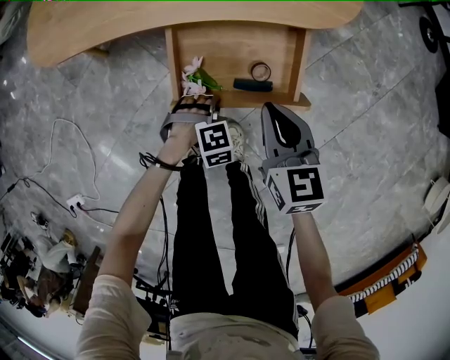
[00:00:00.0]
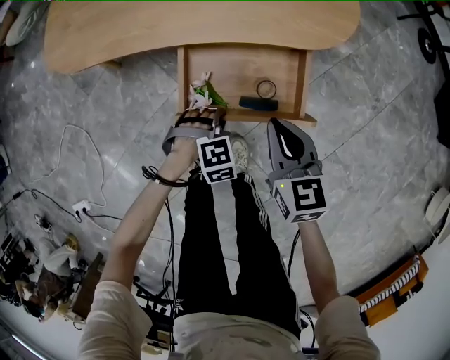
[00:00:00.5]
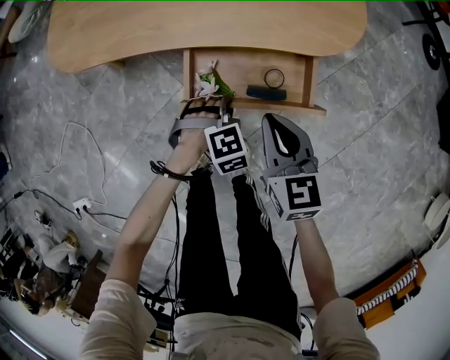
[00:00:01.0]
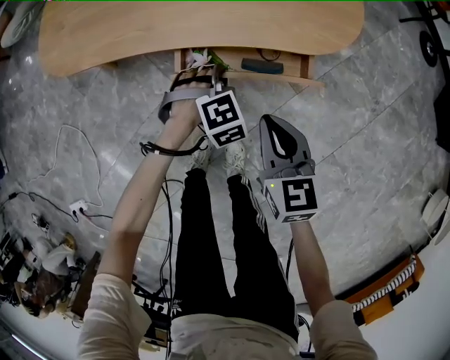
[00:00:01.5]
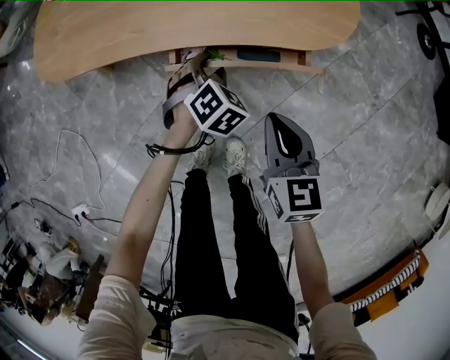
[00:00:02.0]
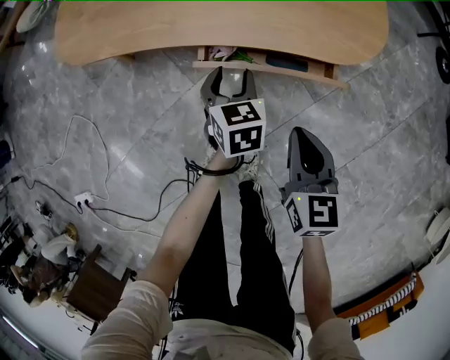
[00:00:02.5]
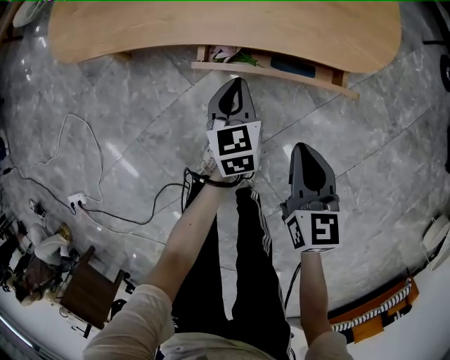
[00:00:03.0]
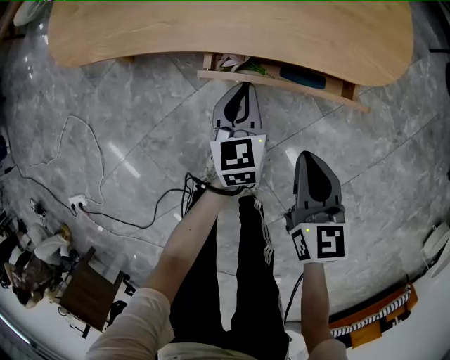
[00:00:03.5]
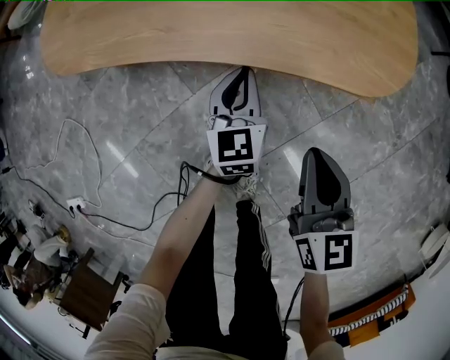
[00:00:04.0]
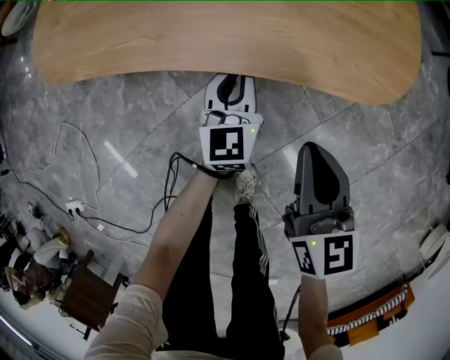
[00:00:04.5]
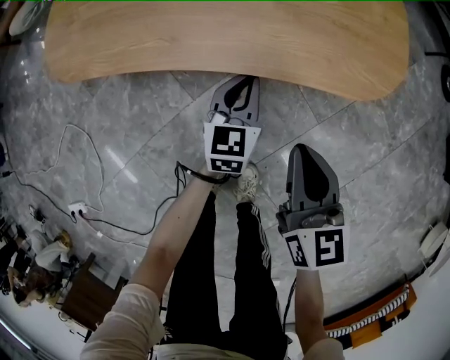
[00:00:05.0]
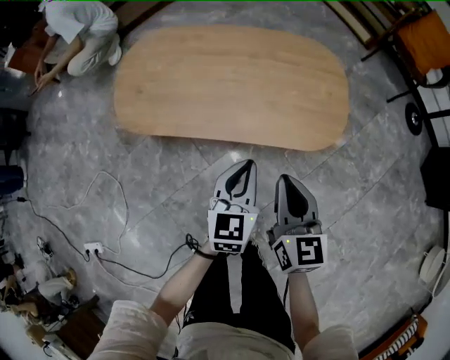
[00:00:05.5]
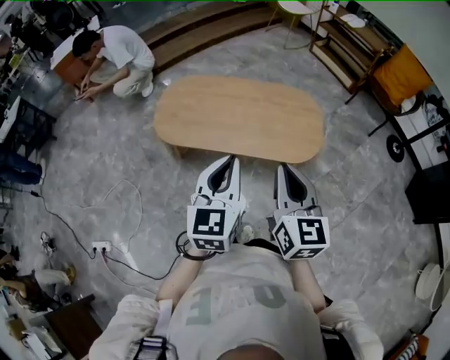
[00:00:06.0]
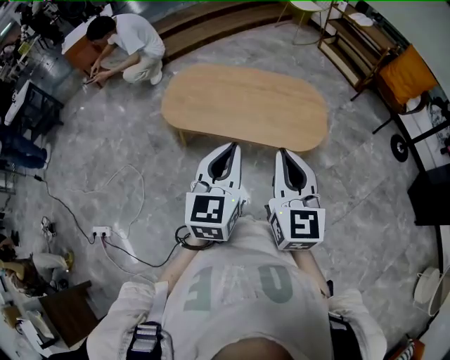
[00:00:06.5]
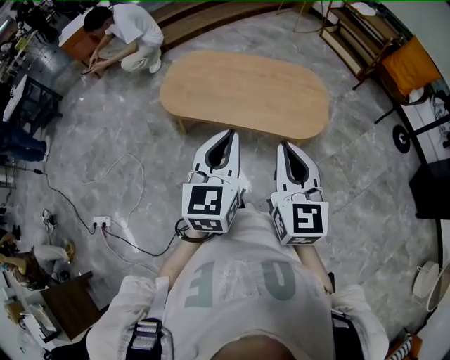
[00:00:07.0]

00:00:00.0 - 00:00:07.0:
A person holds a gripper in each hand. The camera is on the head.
00:00:00.0 - 00:00:02.0: The left gripper shifts by about 20 cm, turns by roughly 40 degrees, and opens up.
00:00:02.0 - 00:00:03.5: The left gripper twists some 50 degrees counterclockwise, seen from behind, and closes up.
00:00:03.5 - 00:00:05.0: Both grippers move forward, about 5 cm.
00:00:05.0 - 00:00:07.0: The two grippers go about 50 cm upward. The left gripper changes its angle by about 20 degrees. Meanwhile the right gripper changes its angle by roughly 30 degrees.

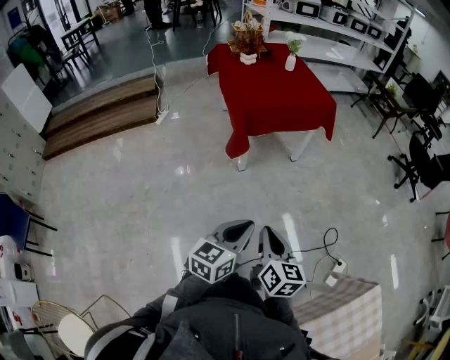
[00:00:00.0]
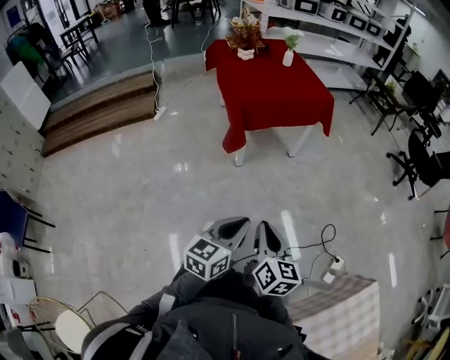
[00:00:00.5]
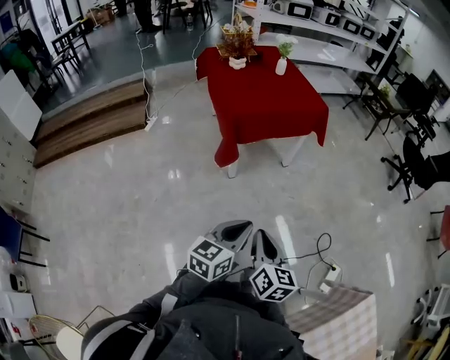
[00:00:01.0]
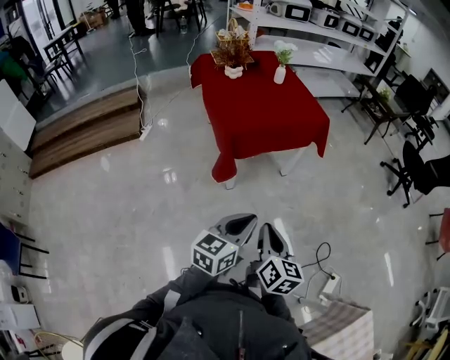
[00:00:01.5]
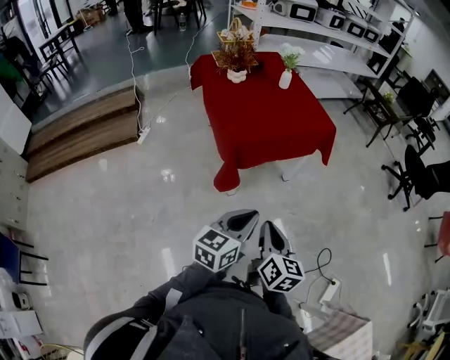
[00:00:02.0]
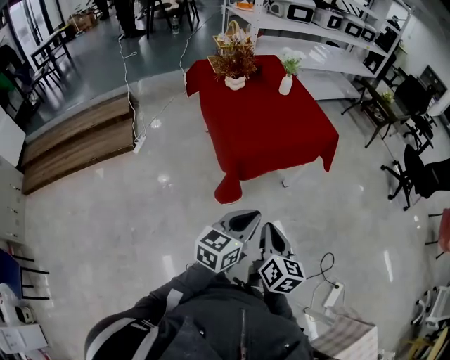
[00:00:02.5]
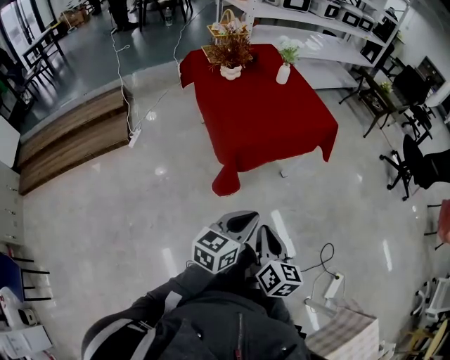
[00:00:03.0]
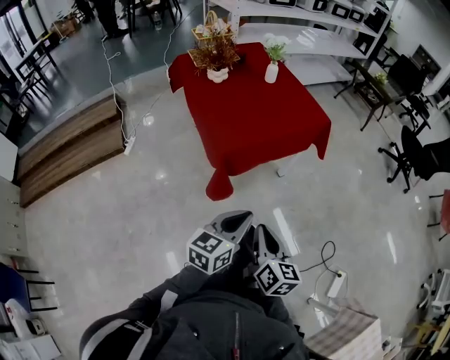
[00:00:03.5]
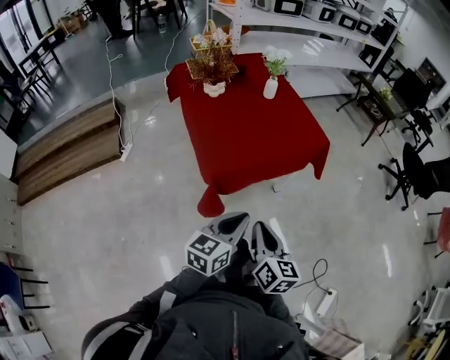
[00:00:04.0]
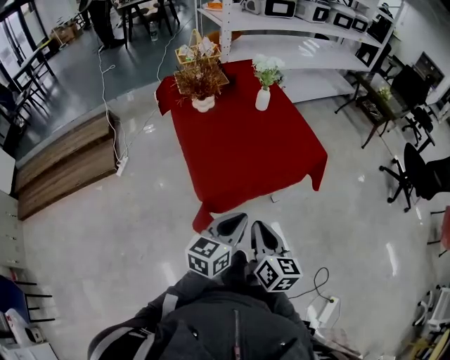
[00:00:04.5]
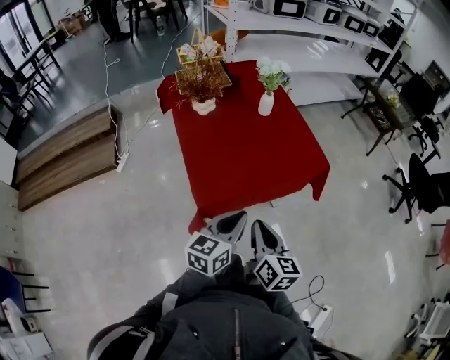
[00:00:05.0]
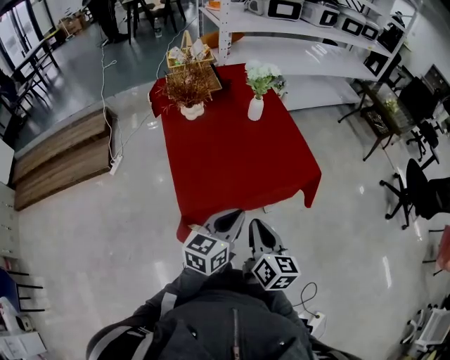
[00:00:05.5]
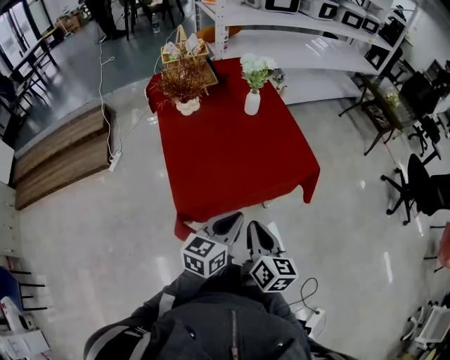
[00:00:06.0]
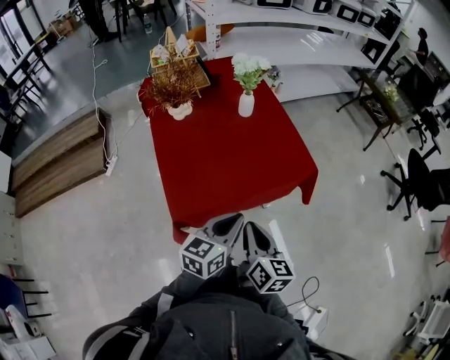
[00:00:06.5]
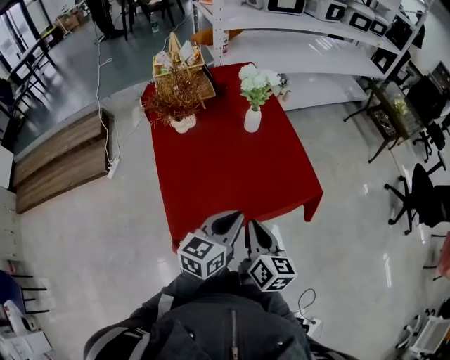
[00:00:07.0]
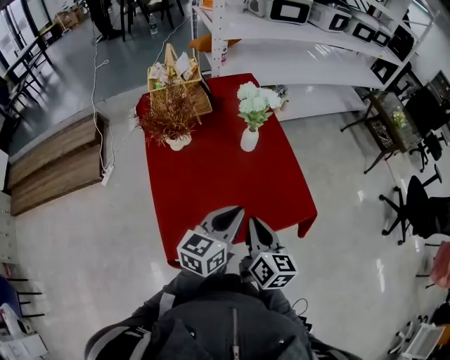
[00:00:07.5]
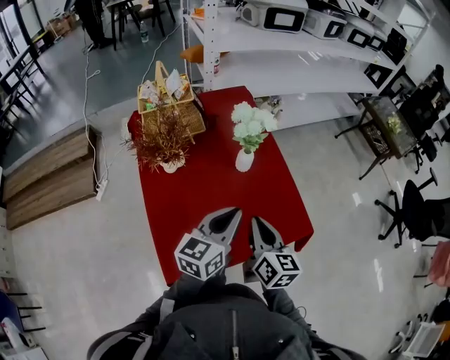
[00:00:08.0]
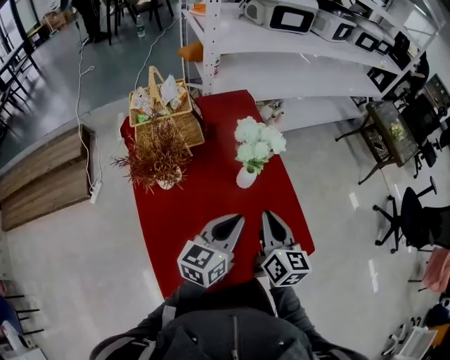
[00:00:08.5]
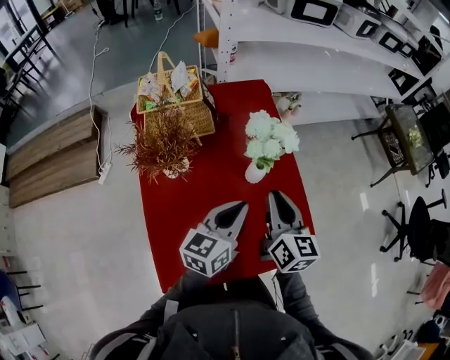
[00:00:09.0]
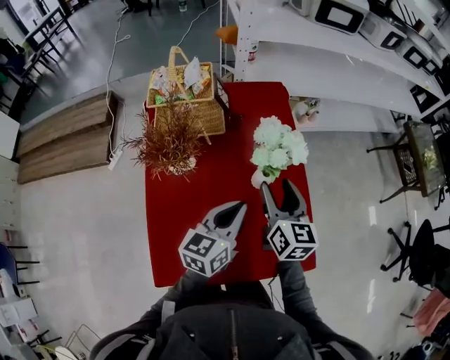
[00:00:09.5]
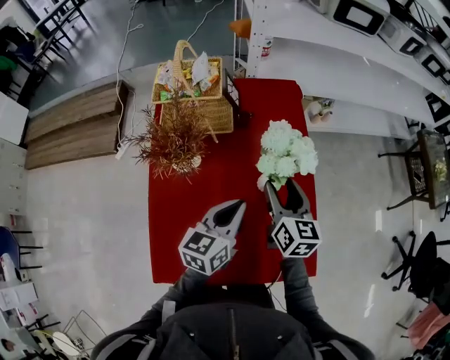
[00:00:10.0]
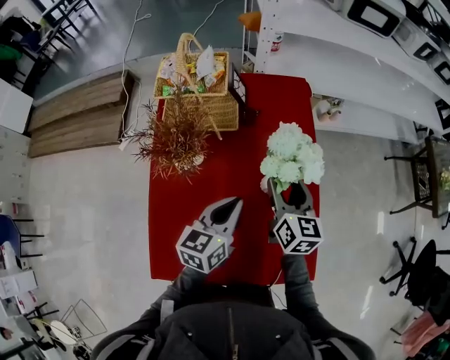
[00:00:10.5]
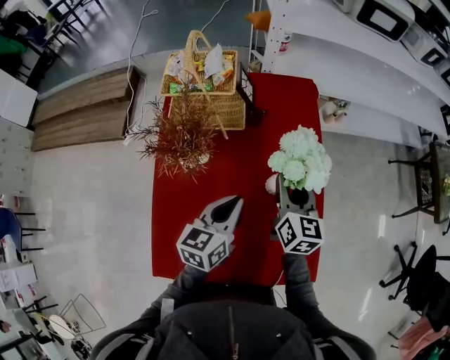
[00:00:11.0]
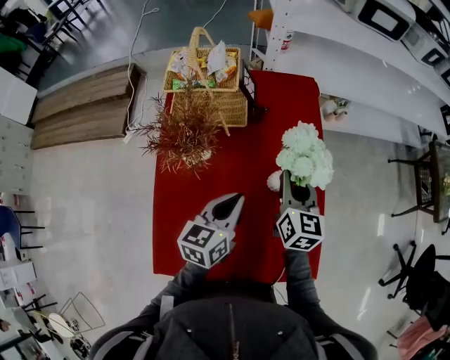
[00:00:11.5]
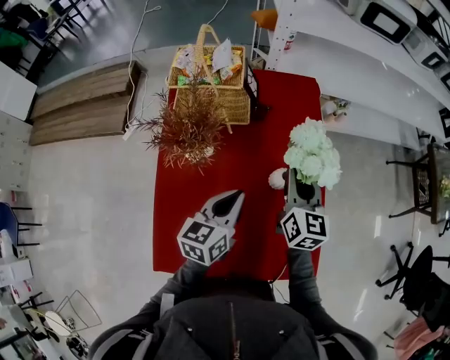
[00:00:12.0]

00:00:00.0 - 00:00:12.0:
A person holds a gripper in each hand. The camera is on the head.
00:00:00.0 - 00:00:02.0: The grippers both shift forward by roughly 25 cm.
00:00:02.0 - 00:00:04.0: The grippers both shift forward by some 15 cm.
00:00:04.0 - 00:00:06.0: The grippers both shift forward by about 20 cm.
00:00:06.0 - 00:00:08.0: Both grippers travel together forward, roughly 25 cm.
00:00:08.0 - 00:00:10.0: The left gripper shifts approximately 15 cm forward. The right gripper goes about 25 cm forward, and opens up.
00:00:10.0 - 00:00:12.0: The right gripper closes up.

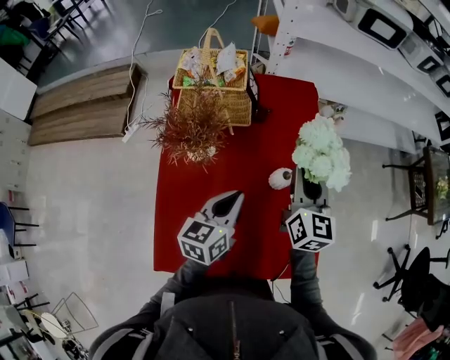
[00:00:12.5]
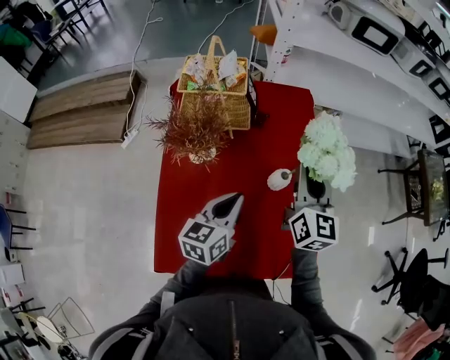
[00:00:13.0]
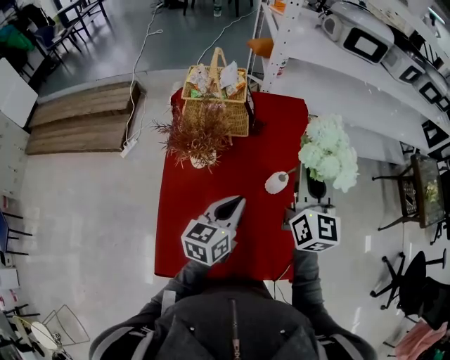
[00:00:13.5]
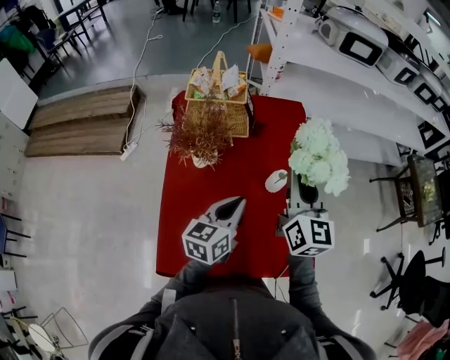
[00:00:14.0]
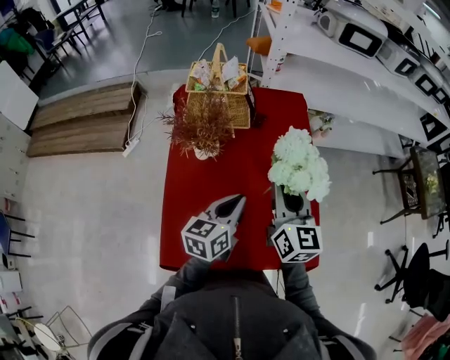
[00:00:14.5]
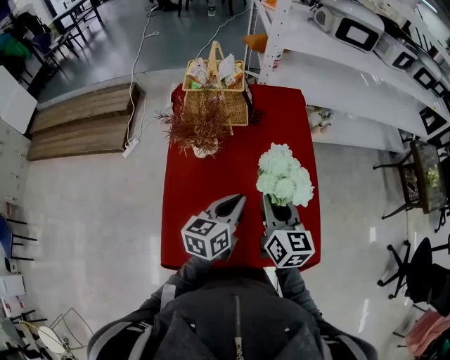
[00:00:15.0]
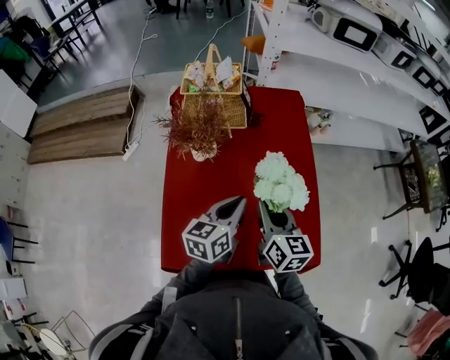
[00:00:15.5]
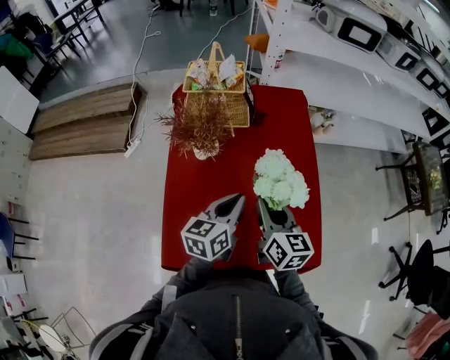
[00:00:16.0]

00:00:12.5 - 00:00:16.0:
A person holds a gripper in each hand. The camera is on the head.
00:00:12.5 - 00:00:14.5: The left gripper shifts about 5 cm backward. Meanwhile the right gripper shifts about 10 cm backward.
00:00:14.5 - 00:00:16.0: The right gripper heads downward, covering some 5 cm.

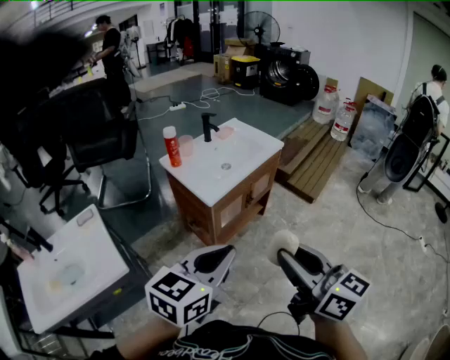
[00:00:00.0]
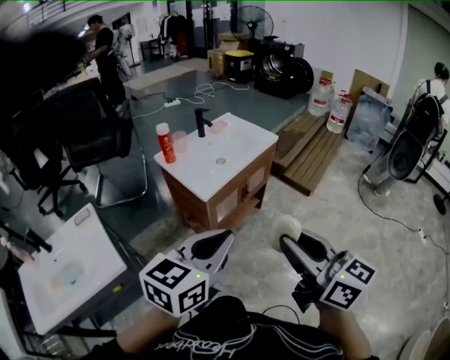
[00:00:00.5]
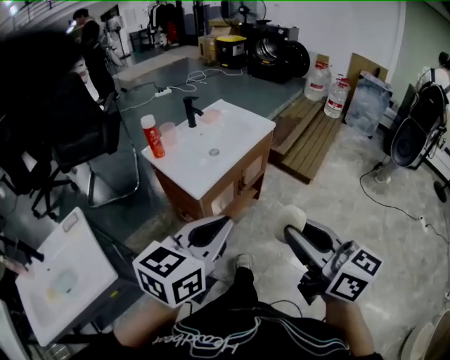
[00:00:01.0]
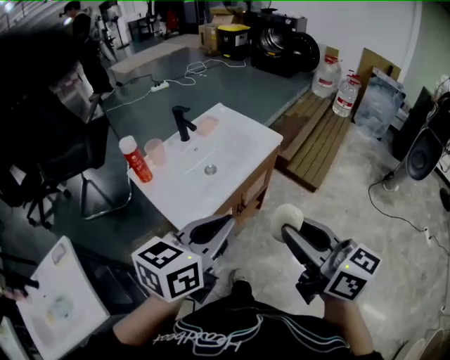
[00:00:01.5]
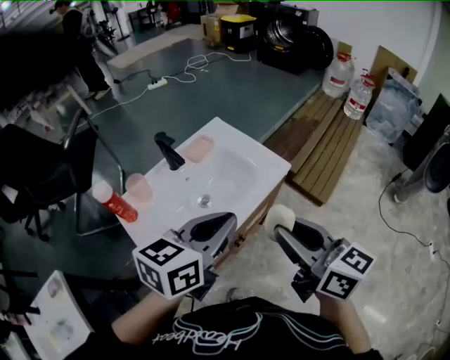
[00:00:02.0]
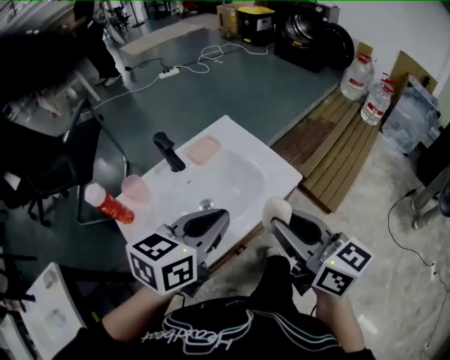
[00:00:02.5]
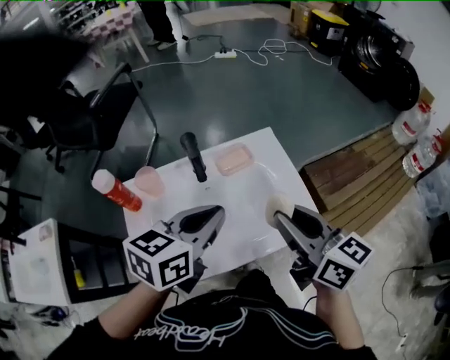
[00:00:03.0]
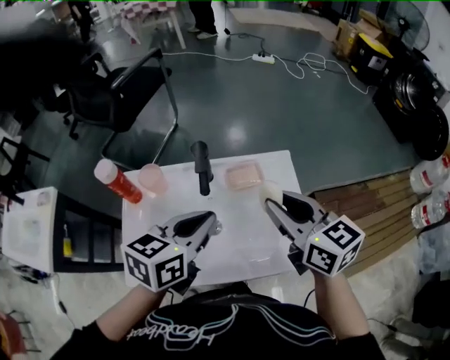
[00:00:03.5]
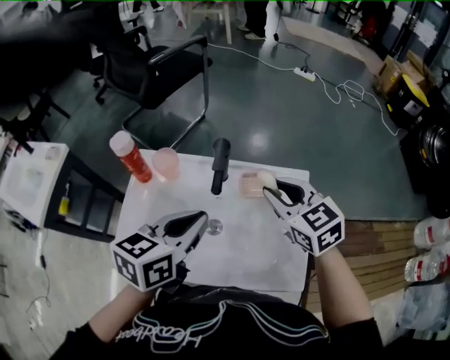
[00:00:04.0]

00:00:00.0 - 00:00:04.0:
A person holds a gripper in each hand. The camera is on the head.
00:00:00.0 - 00:00:02.0: The pair of grippers is taken forward, approximately 50 cm.
00:00:02.0 - 00:00:04.0: The left gripper changes place by roughly 25 cm, and swivels some 60 degrees; the right gripper shifts by about 40 cm, and changes its angle by some 70 degrees.
